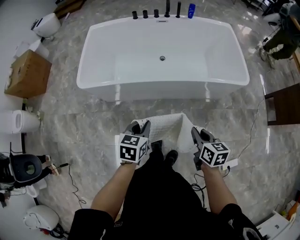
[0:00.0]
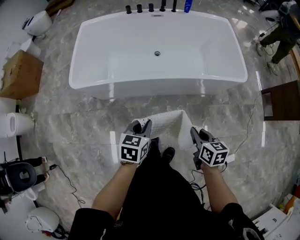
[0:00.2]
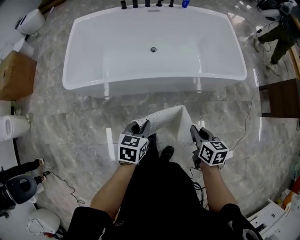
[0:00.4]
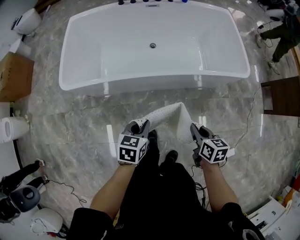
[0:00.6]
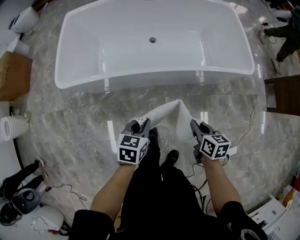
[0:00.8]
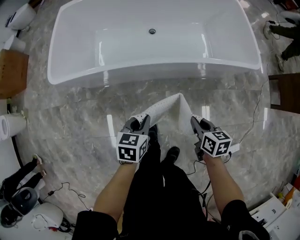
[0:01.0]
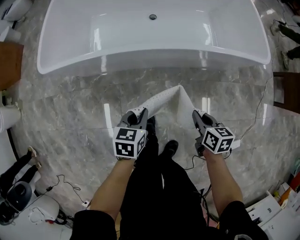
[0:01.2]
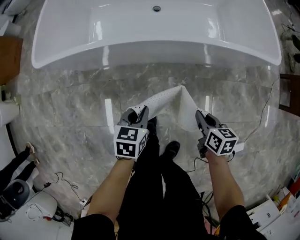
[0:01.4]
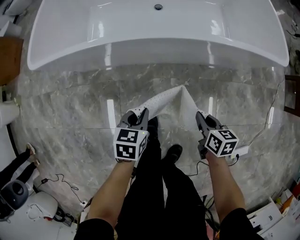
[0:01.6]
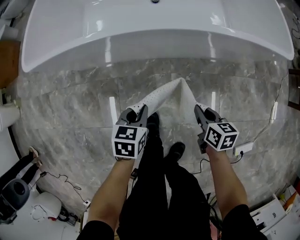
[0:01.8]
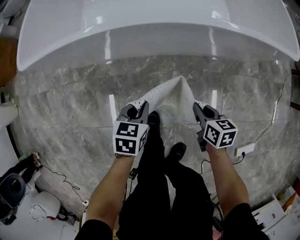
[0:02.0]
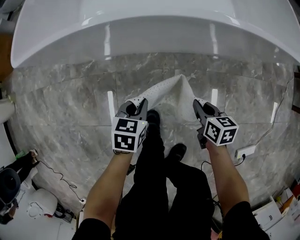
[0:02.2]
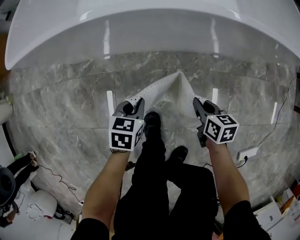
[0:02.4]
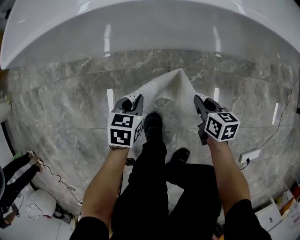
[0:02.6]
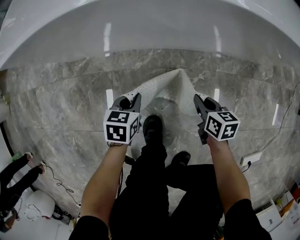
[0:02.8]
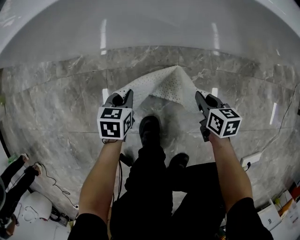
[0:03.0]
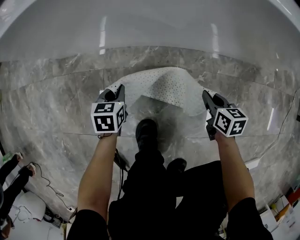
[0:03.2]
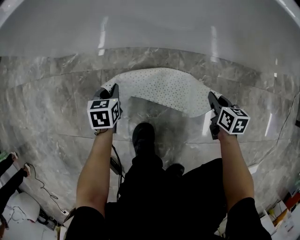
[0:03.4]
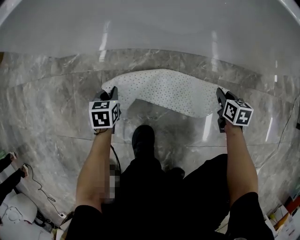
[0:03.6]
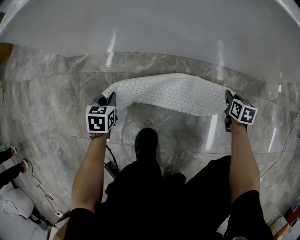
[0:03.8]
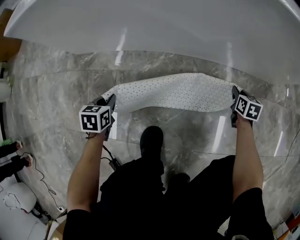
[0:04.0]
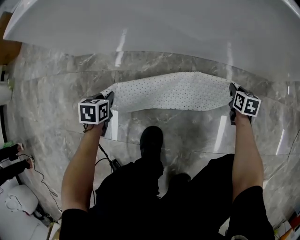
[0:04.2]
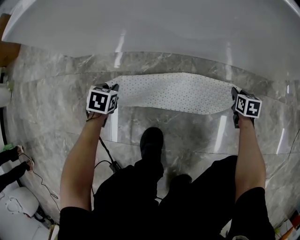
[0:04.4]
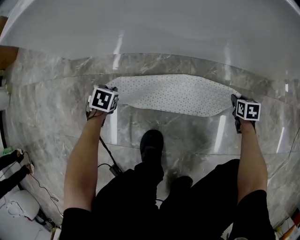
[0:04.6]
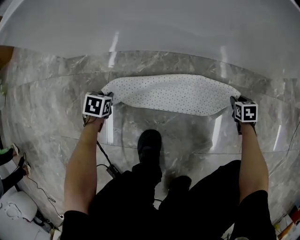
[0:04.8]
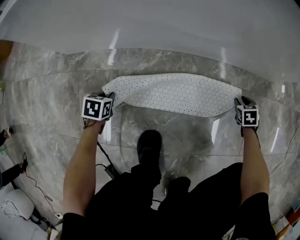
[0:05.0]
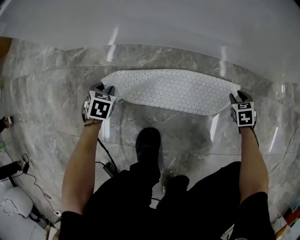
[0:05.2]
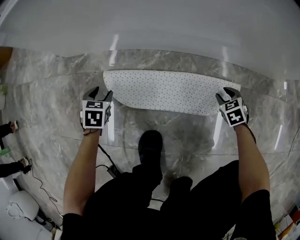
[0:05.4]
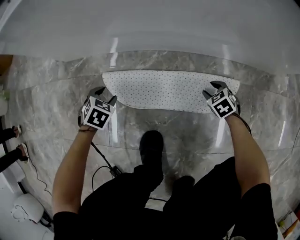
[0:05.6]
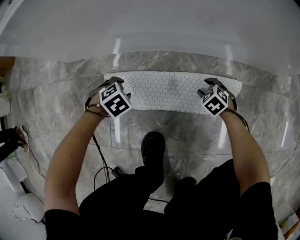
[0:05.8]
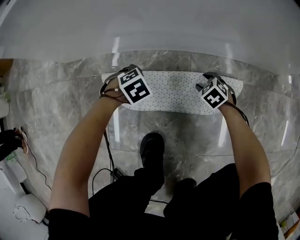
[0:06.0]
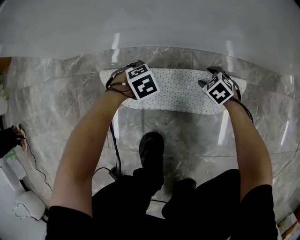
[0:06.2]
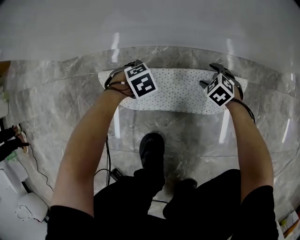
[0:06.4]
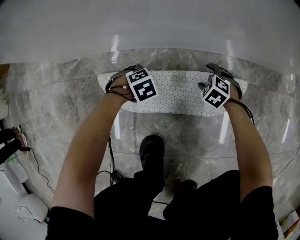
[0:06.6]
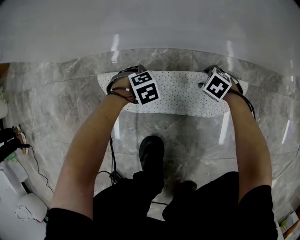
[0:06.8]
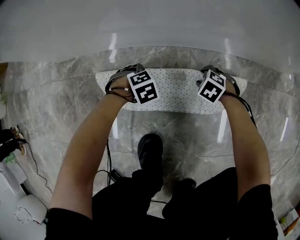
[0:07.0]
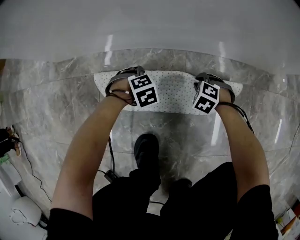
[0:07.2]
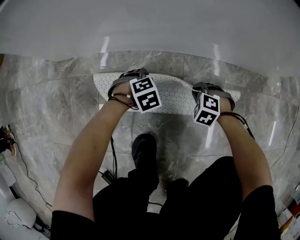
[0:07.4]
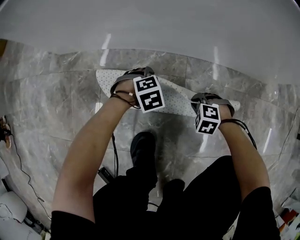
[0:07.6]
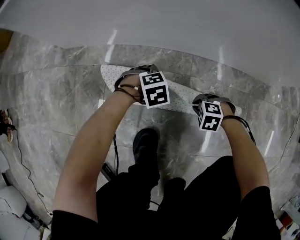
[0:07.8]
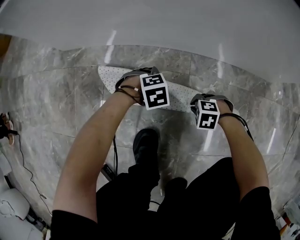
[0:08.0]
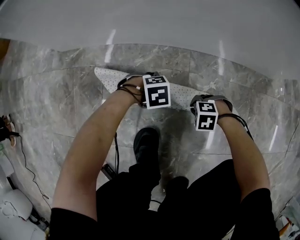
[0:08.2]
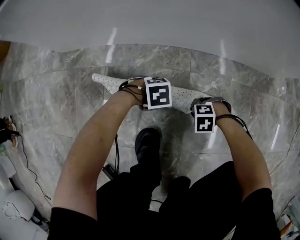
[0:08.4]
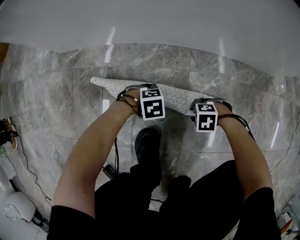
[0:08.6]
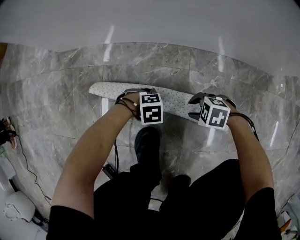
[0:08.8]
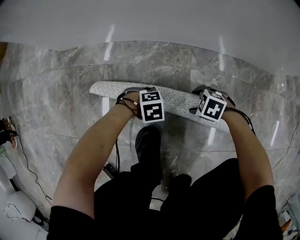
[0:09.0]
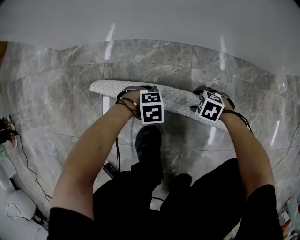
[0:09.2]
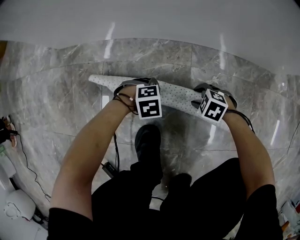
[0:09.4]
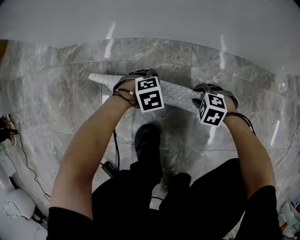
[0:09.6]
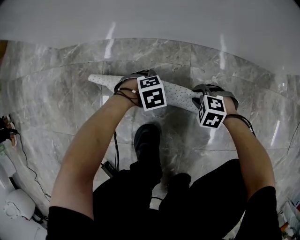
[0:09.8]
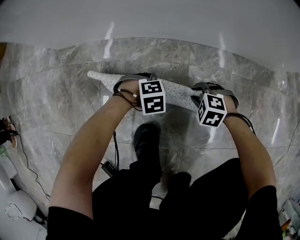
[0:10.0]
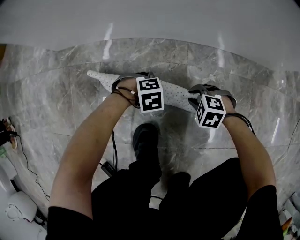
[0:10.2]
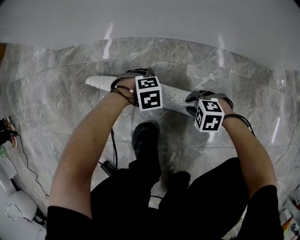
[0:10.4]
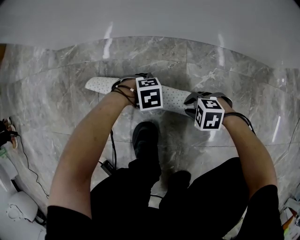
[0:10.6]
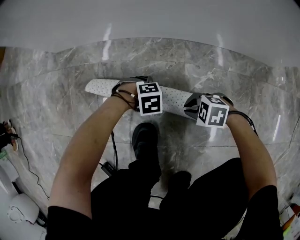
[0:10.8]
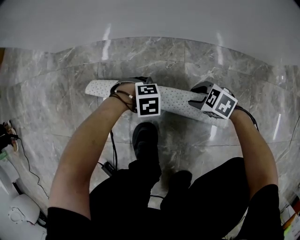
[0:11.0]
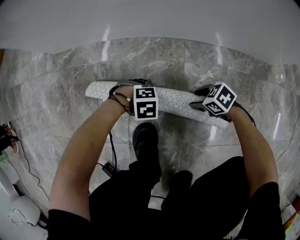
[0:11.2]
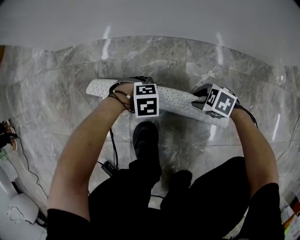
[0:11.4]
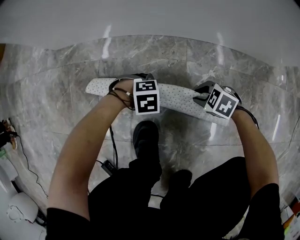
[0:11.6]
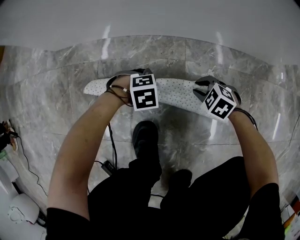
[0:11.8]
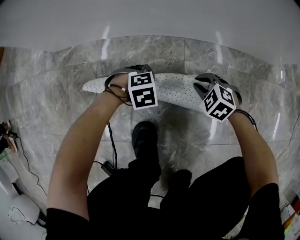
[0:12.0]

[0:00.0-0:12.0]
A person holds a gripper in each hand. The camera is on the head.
0:00.0 to 0:01.6: The two grippers go approximately 35 cm downward.
0:01.6 to 0:03.0: The two grippers go roughly 30 cm downward.
0:03.0 to 0:04.4: The left gripper heads to the left and downward, covering about 15 cm. The right gripper is displaced to the right and downward by some 20 cm, and swivels roughly 20 degrees.
0:04.4 to 0:06.0: The left gripper goes up and down, approximately 5 cm each way, reversing 2 times, rolls clockwise, seen from behind, by roughly 50 degrees, and opens up; the right gripper ends up approximately 20 cm from where it was, rotates around the line of its fingers by some 50 degrees, counterclockwise from behind, and opens up.
0:06.0 to 0:07.6: The right gripper ends up approximately 10 cm from where it was, changes its angle by about 40 degrees, and closes. Meanwhile the left gripper ends up roughly 5 cm from where it was.
0:07.6 to 0:09.0: The left gripper ends up some 15 cm from where it was, and closes, while the right gripper swivels some 30 degrees, and opens its fingers.
0:09.0 to 0:10.4: The right gripper closes. The left gripper shifts by some 5 cm, and opens up.
0:10.4 to 0:12.0: The left gripper closes up. The right gripper moves about 10 cm, turns by about 30 degrees, and opens, then closes once more.

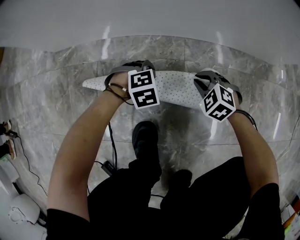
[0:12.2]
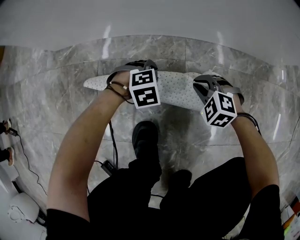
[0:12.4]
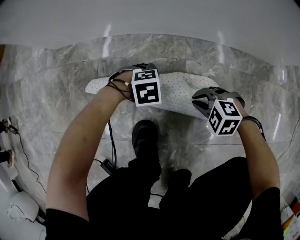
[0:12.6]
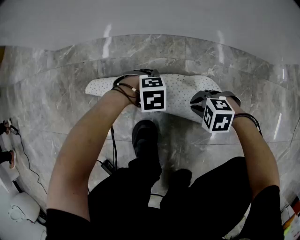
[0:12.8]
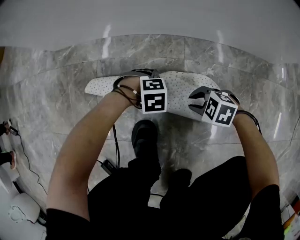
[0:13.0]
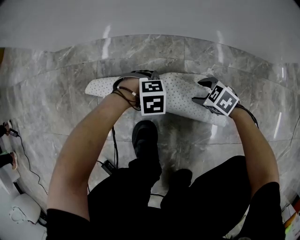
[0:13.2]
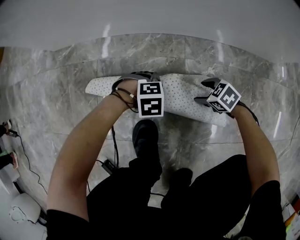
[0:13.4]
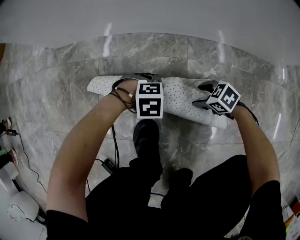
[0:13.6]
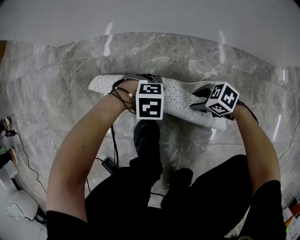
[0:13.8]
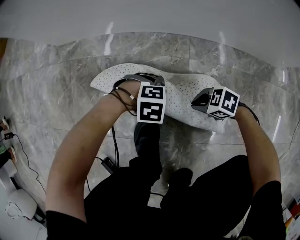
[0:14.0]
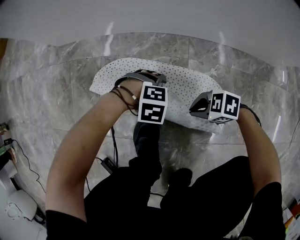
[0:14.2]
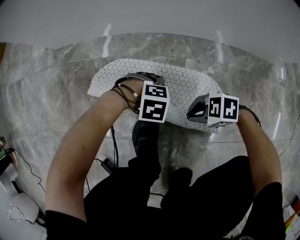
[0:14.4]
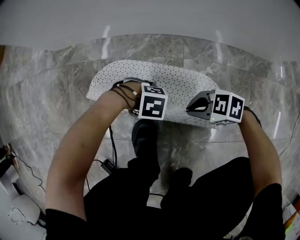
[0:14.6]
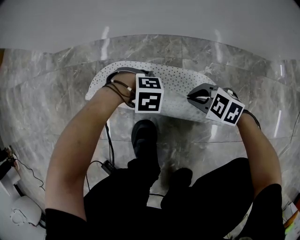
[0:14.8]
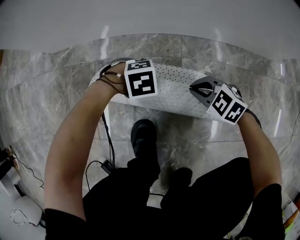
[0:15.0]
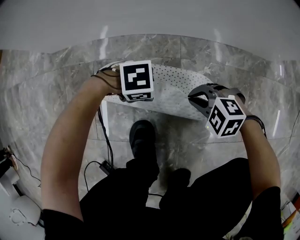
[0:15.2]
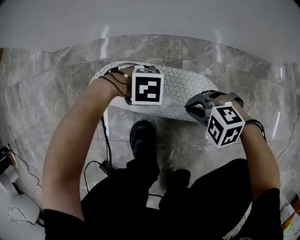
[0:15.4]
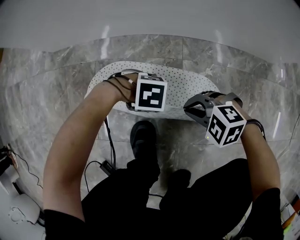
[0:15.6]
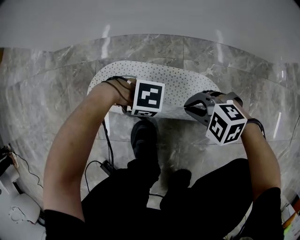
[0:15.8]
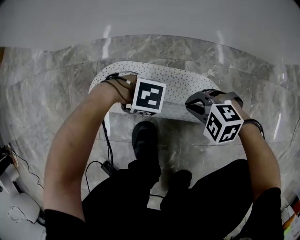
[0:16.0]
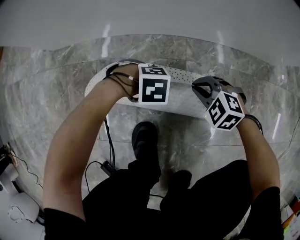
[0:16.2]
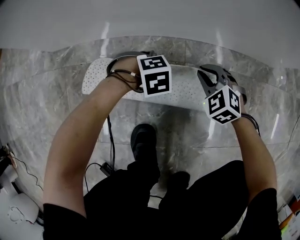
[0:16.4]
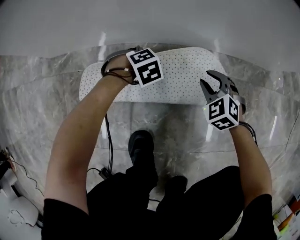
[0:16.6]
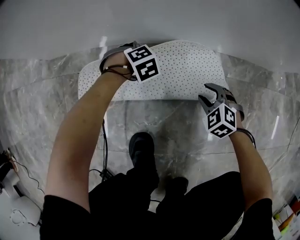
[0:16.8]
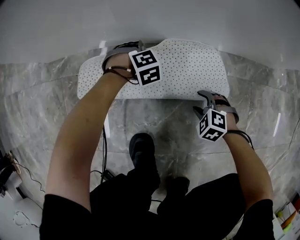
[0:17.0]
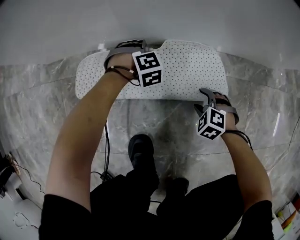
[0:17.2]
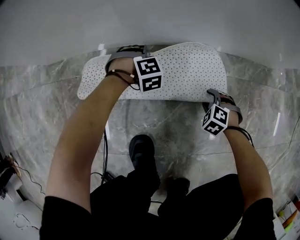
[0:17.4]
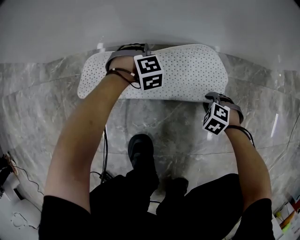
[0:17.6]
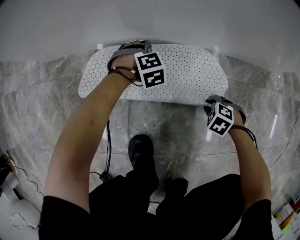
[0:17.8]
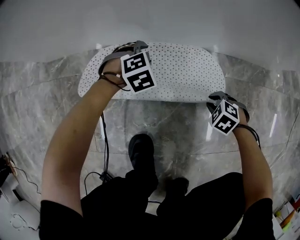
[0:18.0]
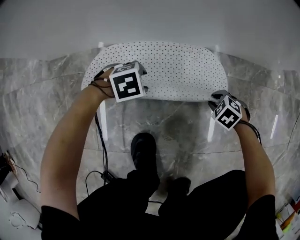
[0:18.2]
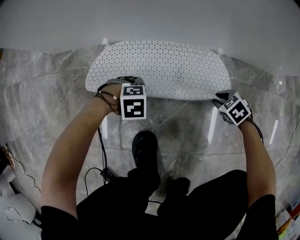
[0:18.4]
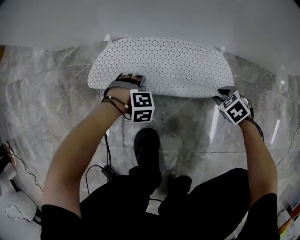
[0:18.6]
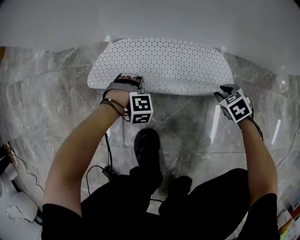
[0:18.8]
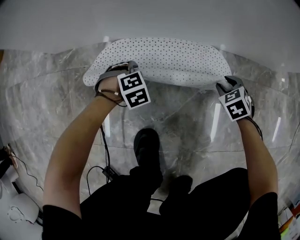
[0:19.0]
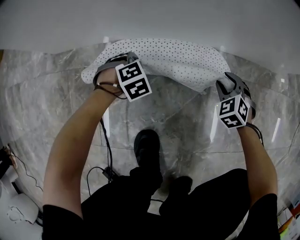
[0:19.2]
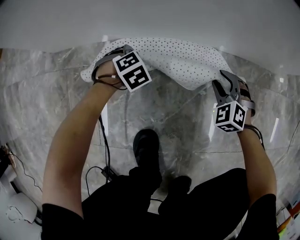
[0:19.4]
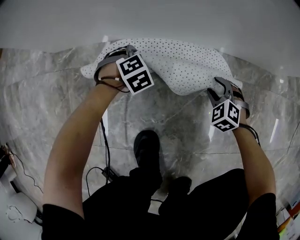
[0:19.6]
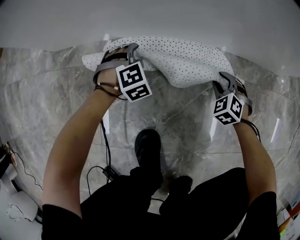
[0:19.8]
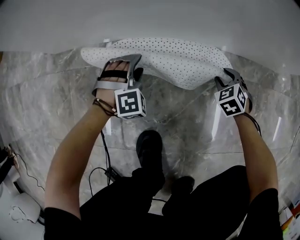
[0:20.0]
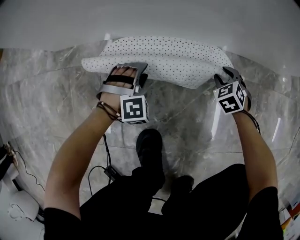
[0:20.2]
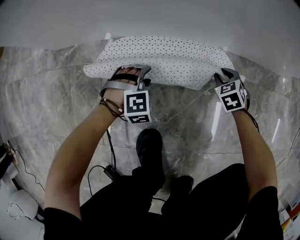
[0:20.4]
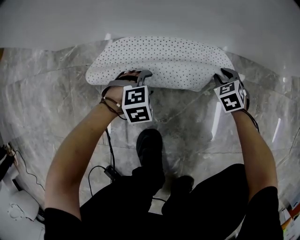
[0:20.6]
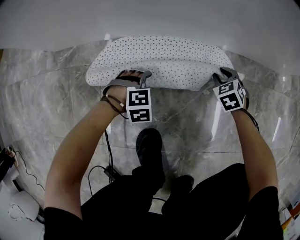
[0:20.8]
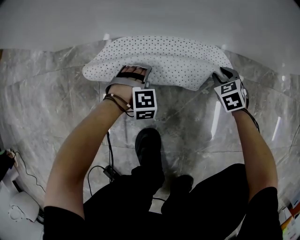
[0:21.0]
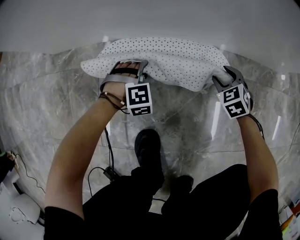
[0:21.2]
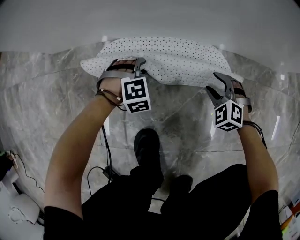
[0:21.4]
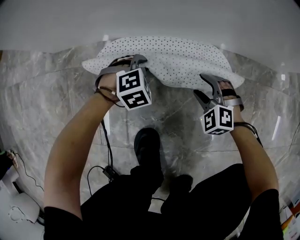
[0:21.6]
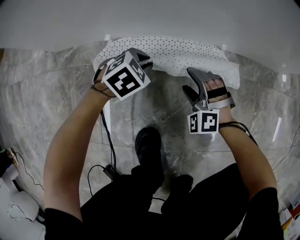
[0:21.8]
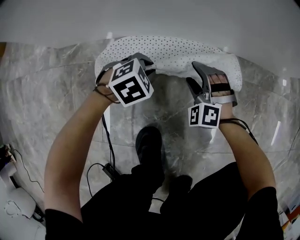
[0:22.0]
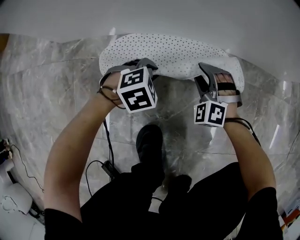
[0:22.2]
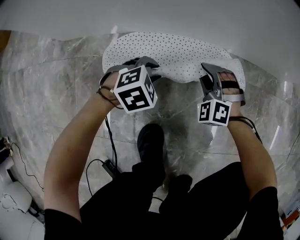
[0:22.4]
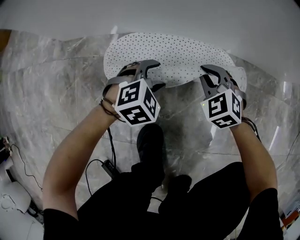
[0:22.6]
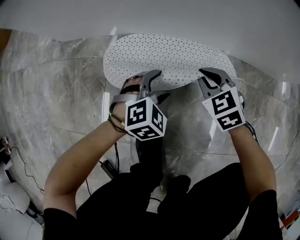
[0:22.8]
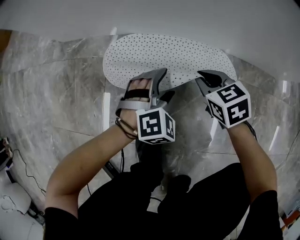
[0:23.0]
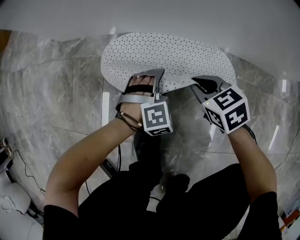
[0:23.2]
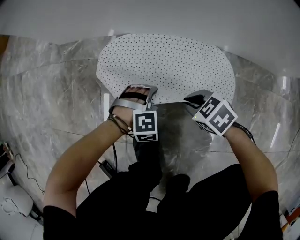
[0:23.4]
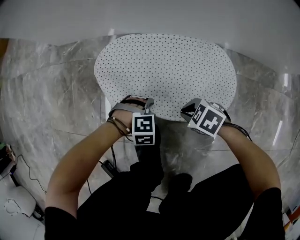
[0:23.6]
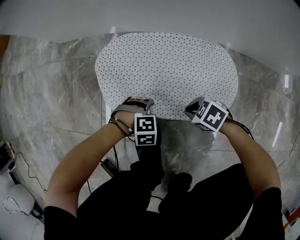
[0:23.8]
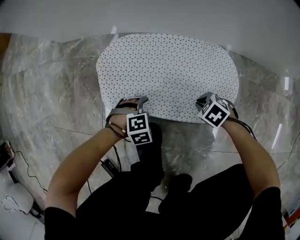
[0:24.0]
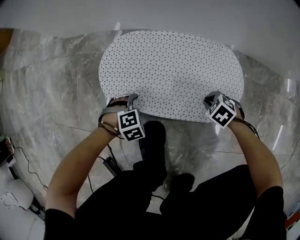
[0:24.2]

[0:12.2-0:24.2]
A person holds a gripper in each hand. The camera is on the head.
0:12.2 to 0:13.8: The right gripper ends up about 10 cm from where it was, swivels about 50 degrees, and opens its fingers. The left gripper shifts by about 10 cm, changes its angle by roughly 20 degrees, and opens its fingers.
0:13.8 to 0:15.2: The left gripper closes, then reopens. Meanwhile the right gripper is displaced upward by some 10 cm, swivels about 40 degrees, and closes up.
0:15.2 to 0:16.6: The right gripper ends up approximately 15 cm from where it was, rotates approximately 40 degrees, and opens. Meanwhile the left gripper moves some 20 cm, turns by some 40 degrees, and closes its fingers.
0:16.6 to 0:18.2: The right gripper changes place by about 15 cm, angles its fingers downward, by approximately 30 degrees, and opens and closes again. Meanwhile the left gripper shifts by roughly 10 cm, turns by about 20 degrees, and opens.
0:18.2 to 0:19.8: The left gripper moves approximately 10 cm, and swivels roughly 40 degrees. Meanwhile the right gripper ends up about 10 cm from where it was, and swivels approximately 30 degrees.
0:21.2 to 0:22.6: The right gripper is displaced to the left and upward by some 15 cm, turns by some 20 degrees, and closes its fingers; the left gripper is displaced upward by about 10 cm, rotates roughly 30 degrees, and closes, then opens again.
0:22.6 to 0:24.2: The right gripper travels downward by some 15 cm, and points its fingers roughly 30 degrees further downward. The left gripper shifts by approximately 20 cm, rotates some 30 degrees, and closes and opens again.
